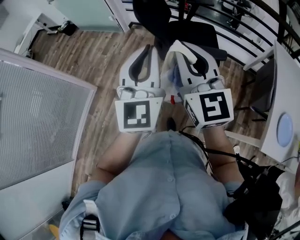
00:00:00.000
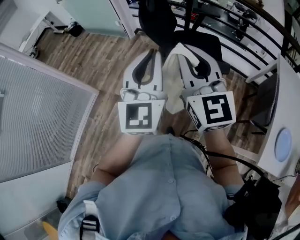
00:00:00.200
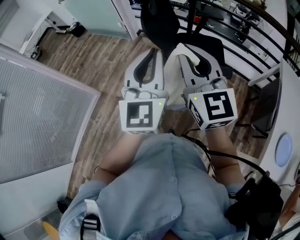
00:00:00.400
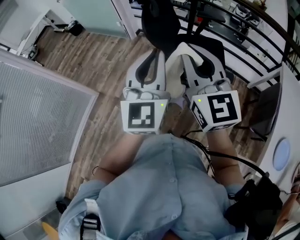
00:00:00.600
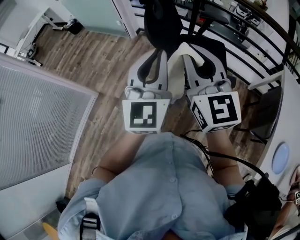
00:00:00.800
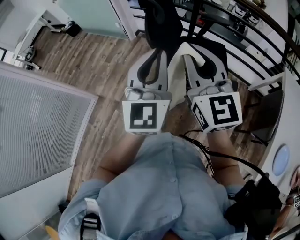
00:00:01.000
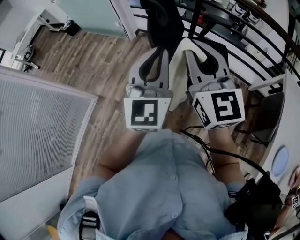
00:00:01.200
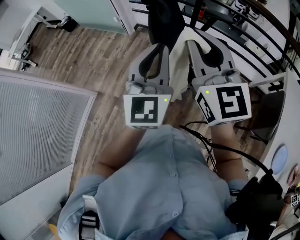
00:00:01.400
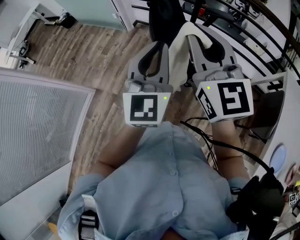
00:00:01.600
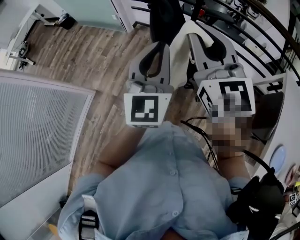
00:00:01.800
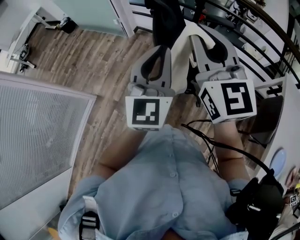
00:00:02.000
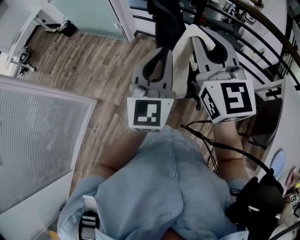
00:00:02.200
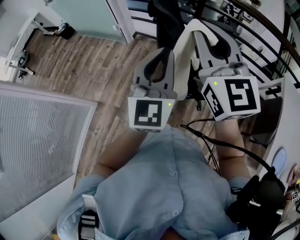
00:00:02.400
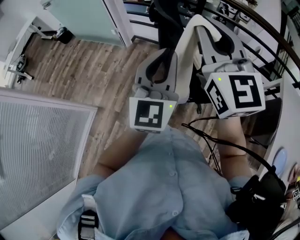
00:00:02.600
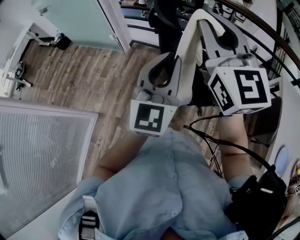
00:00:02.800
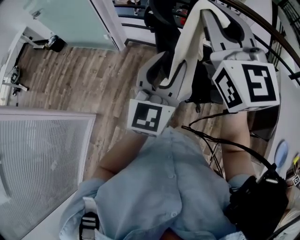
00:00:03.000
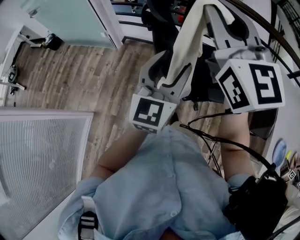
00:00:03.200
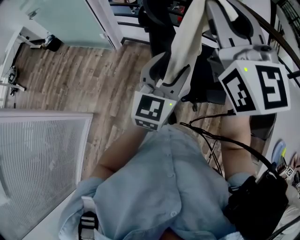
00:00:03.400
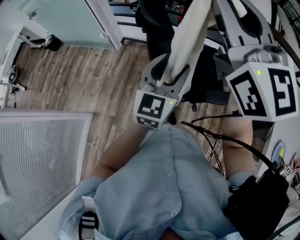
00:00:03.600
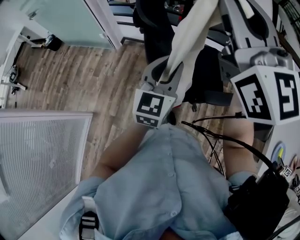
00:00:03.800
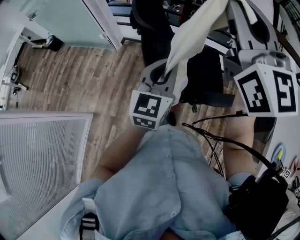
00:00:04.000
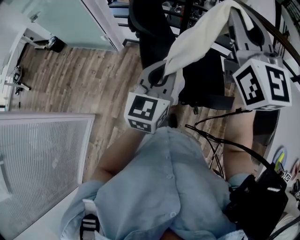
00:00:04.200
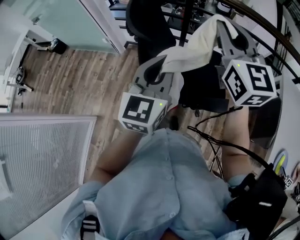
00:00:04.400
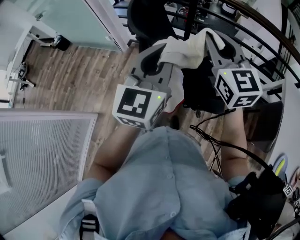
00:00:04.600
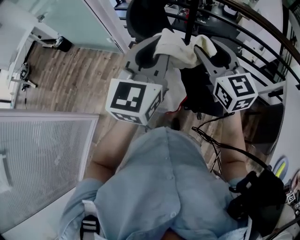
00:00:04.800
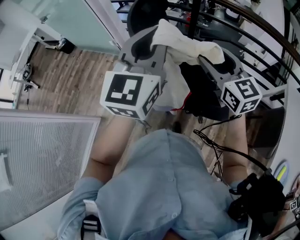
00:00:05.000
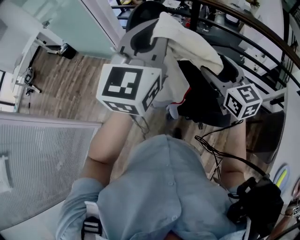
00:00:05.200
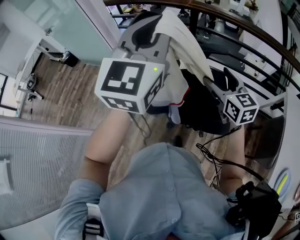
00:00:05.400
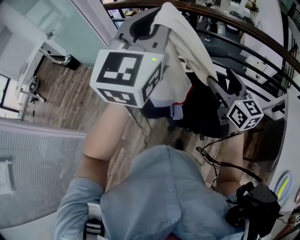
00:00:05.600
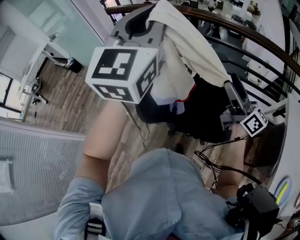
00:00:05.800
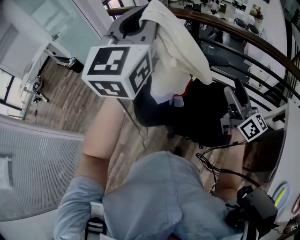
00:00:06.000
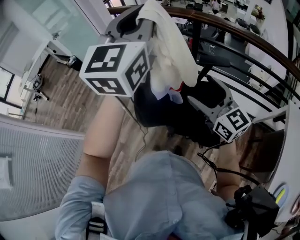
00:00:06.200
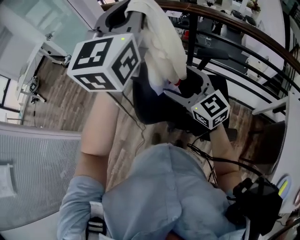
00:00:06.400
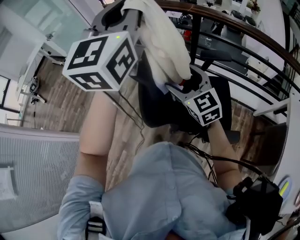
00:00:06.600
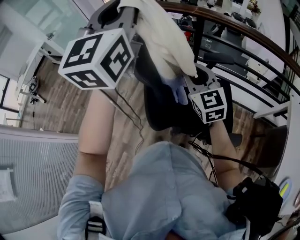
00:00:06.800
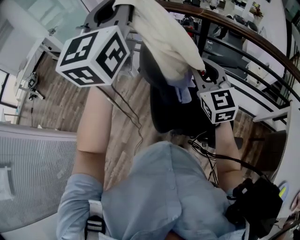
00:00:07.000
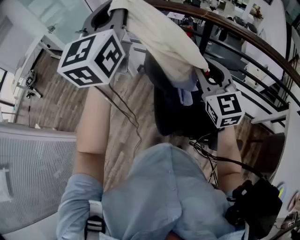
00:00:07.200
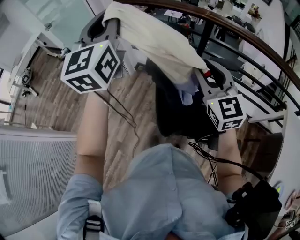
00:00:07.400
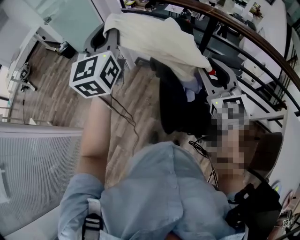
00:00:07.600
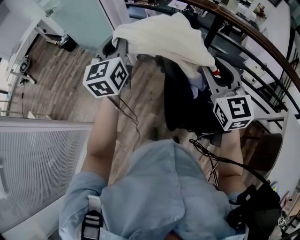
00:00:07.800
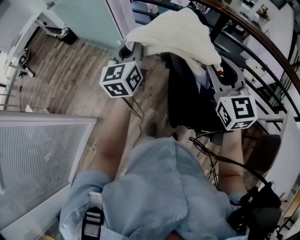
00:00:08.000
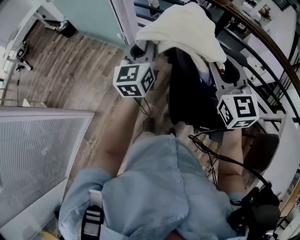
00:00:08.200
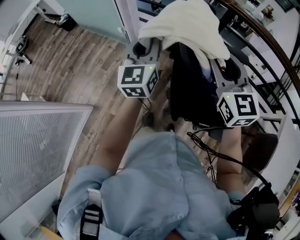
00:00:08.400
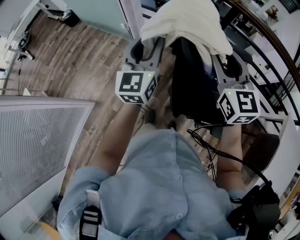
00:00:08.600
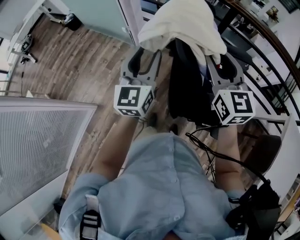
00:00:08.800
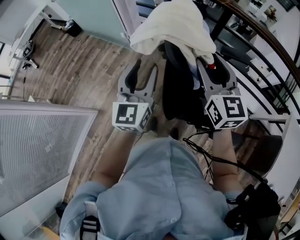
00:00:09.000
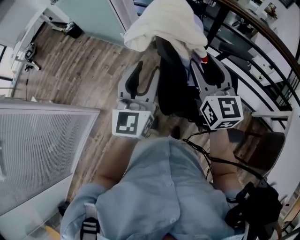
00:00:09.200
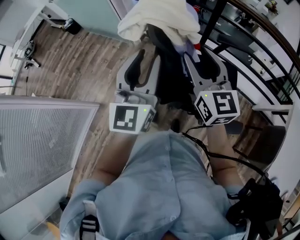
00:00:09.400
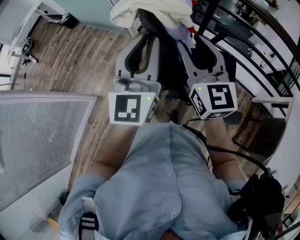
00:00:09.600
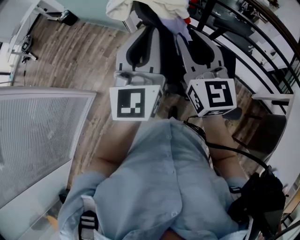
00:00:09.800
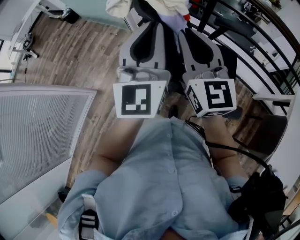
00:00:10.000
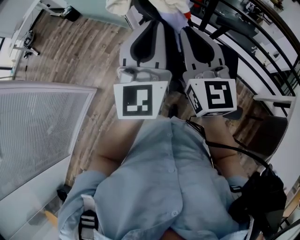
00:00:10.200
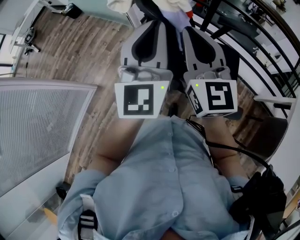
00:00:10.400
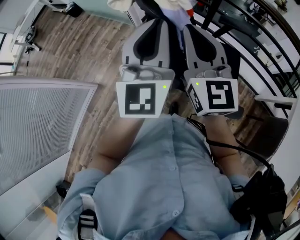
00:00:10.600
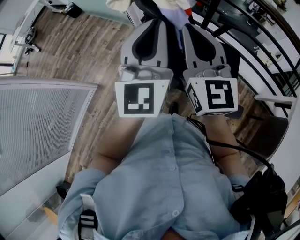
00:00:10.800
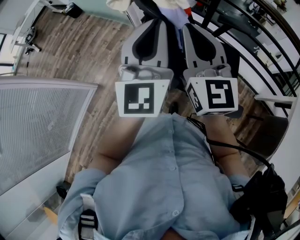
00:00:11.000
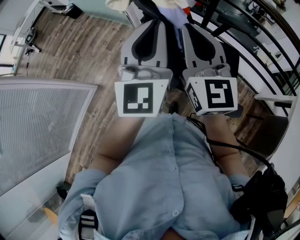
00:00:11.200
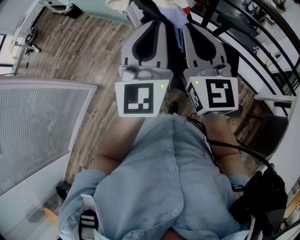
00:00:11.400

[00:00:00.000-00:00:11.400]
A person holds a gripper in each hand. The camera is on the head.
00:00:00.000 to 00:00:01.400: Both grippers travel together forward, approximately 20 cm.
00:00:01.400 to 00:00:02.800: The right gripper moves forward and upward, some 15 cm; the left gripper is displaced forward by about 5 cm.
00:00:02.800 to 00:00:04.200: The right gripper is displaced to the right and forward by about 15 cm. Meanwhile the left gripper is displaced downward, forward and to the right by roughly 10 cm, and opens, then closes again.
00:00:04.200 to 00:00:05.600: The right gripper heads downward, covering approximately 20 cm, swivels about 30 degrees, and opens its fingers. Meanwhile the left gripper is displaced upward and forward by about 25 cm, and swivels approximately 20 degrees.
00:00:05.600 to 00:00:07.200: Both grippers travel together to the left and forward, roughly 20 cm. The right gripper changes its angle by about 30 degrees, and closes.
00:00:07.200 to 00:00:08.600: The left gripper shifts approximately 25 cm downward, and opens; the right gripper changes place by about 5 cm.
00:00:08.600 to 00:00:10.000: The left gripper travels backward and to the right by about 20 cm, and closes up, while the right gripper is displaced backward by some 10 cm.
00:00:10.000 to 00:00:11.400: The grippers stay close to where they were, moving slightly.

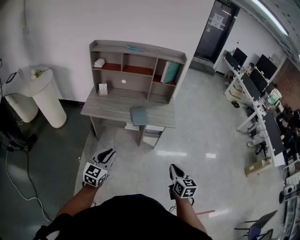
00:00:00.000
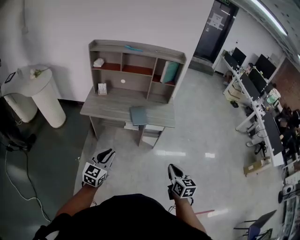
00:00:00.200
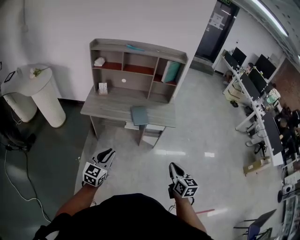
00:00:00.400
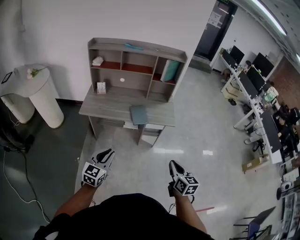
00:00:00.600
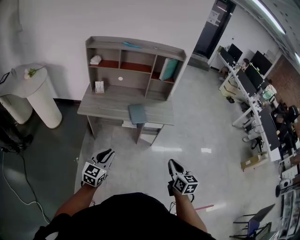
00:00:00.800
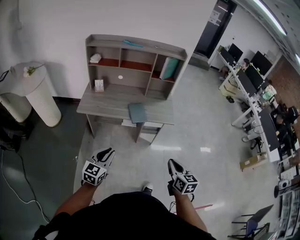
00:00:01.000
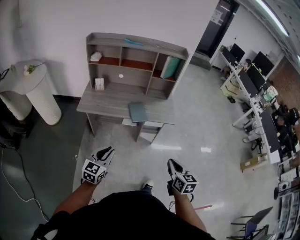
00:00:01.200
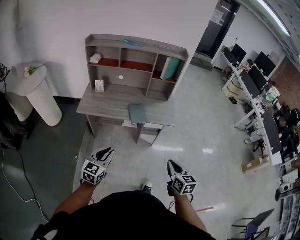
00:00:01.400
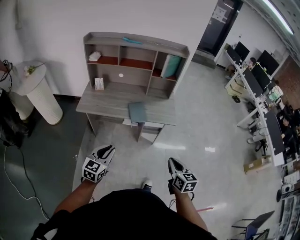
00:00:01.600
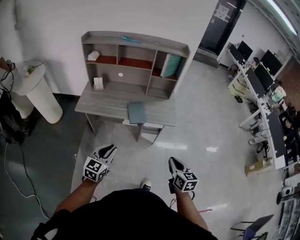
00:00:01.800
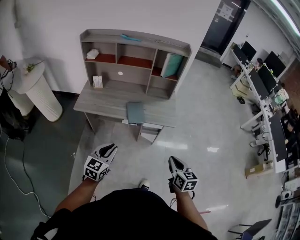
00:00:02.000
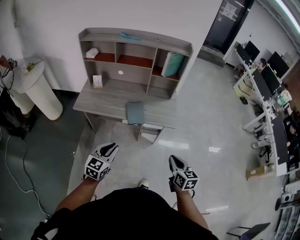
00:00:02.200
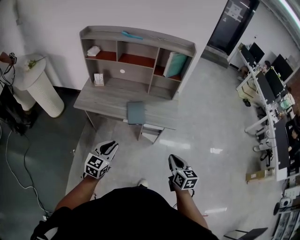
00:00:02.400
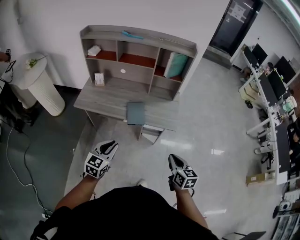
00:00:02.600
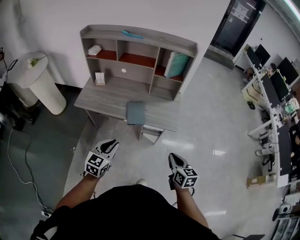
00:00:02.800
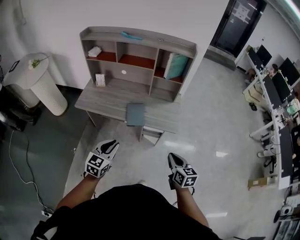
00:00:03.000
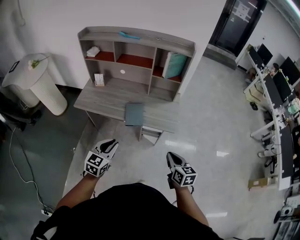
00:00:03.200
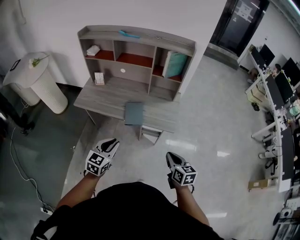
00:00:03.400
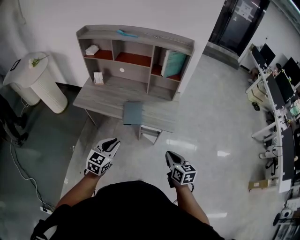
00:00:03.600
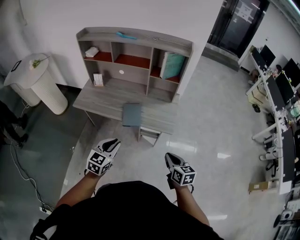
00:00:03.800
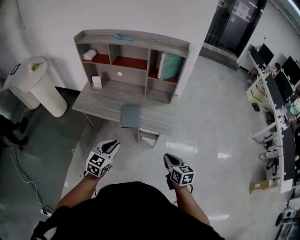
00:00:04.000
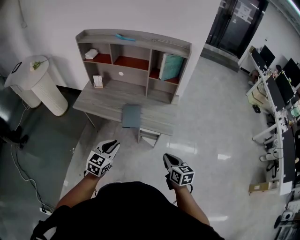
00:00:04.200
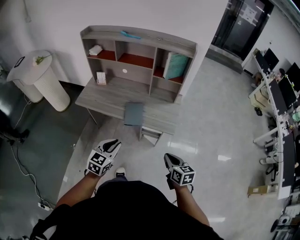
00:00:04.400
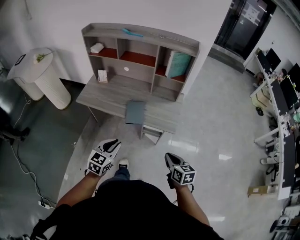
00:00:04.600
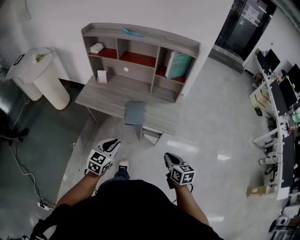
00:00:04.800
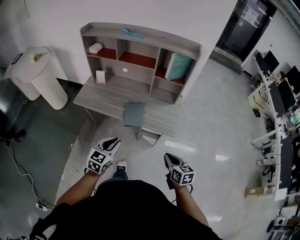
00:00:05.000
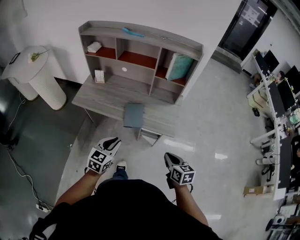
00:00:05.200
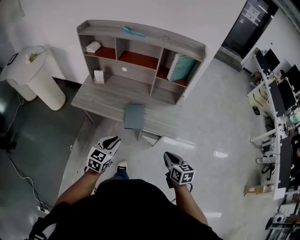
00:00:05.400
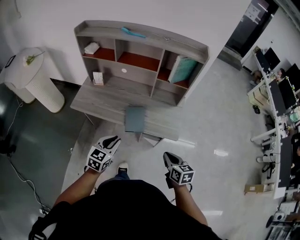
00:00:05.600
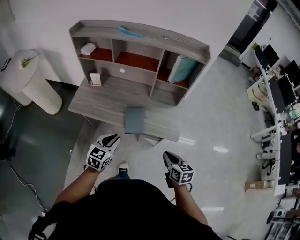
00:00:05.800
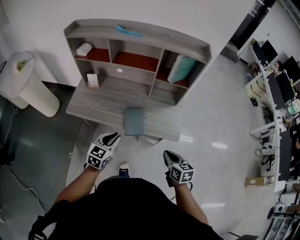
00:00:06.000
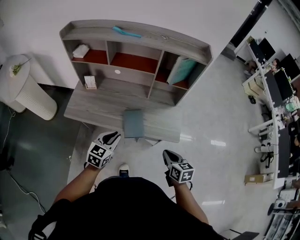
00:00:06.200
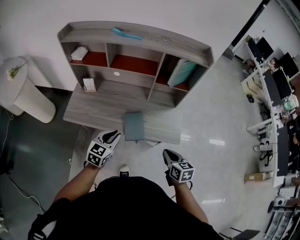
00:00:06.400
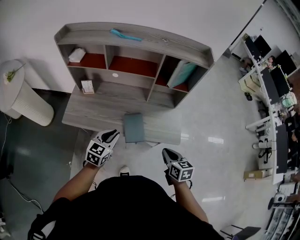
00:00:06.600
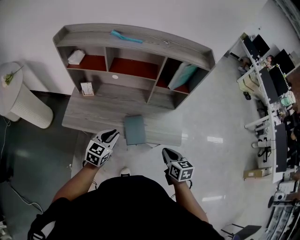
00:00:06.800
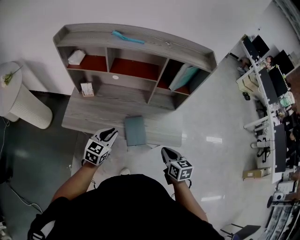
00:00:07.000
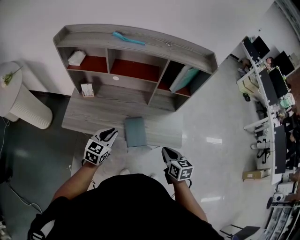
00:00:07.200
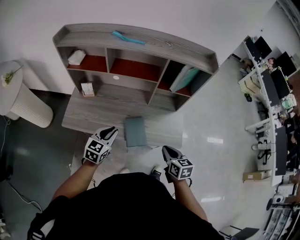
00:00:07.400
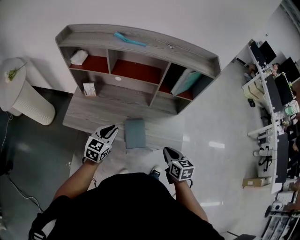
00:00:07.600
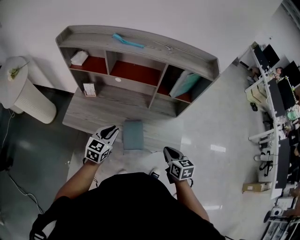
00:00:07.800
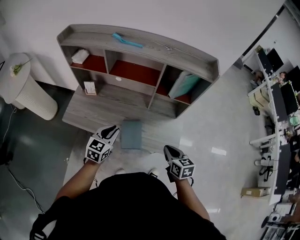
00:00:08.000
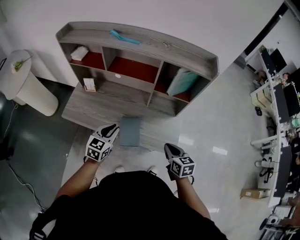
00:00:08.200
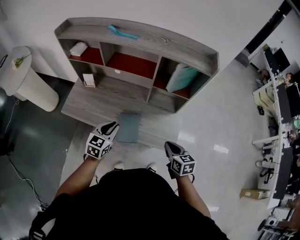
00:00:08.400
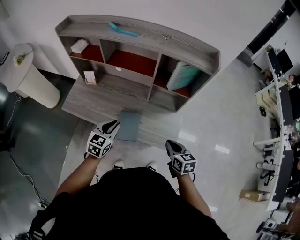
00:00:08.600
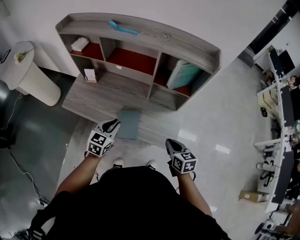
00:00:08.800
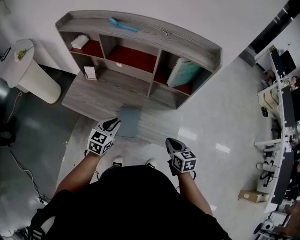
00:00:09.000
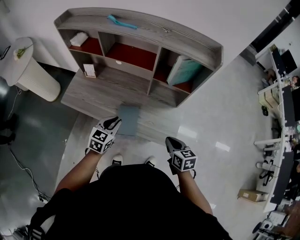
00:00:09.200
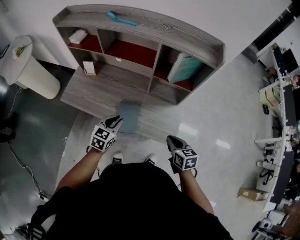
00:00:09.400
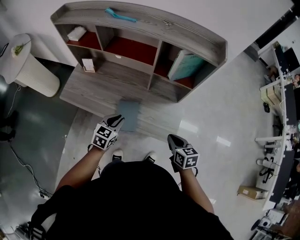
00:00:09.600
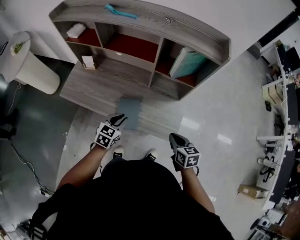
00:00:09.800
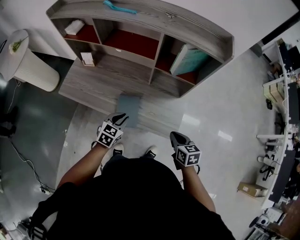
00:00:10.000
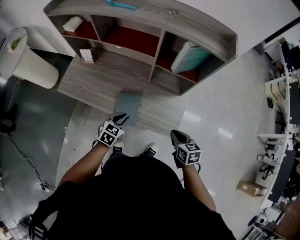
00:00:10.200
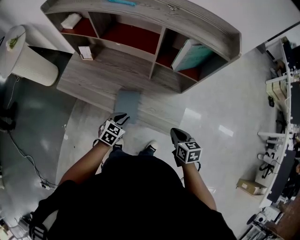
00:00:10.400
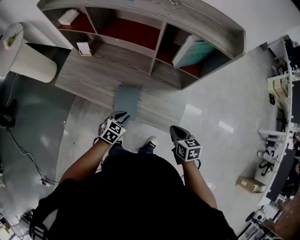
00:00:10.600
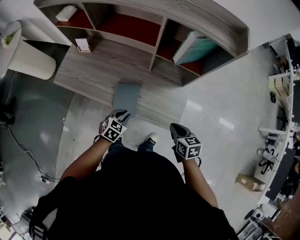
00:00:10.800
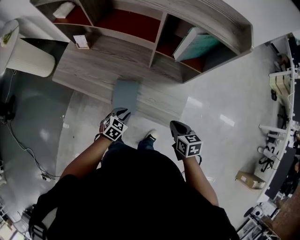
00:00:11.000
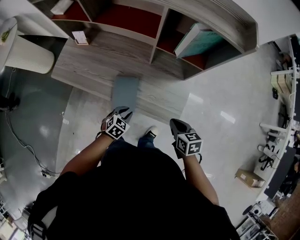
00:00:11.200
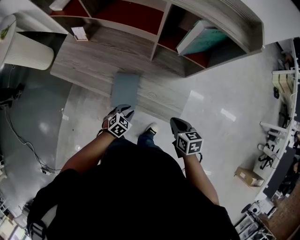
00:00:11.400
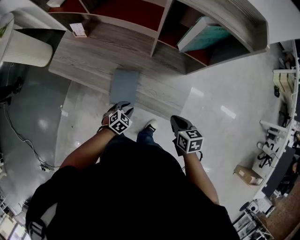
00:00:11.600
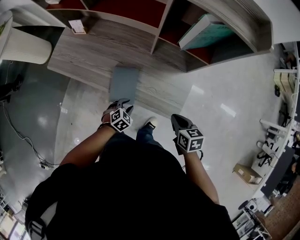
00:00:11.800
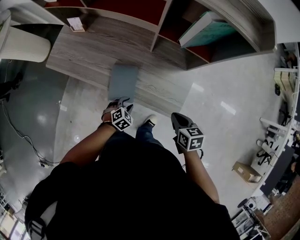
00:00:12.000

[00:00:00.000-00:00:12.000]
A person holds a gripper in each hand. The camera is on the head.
00:00:00.000 to 00:00:01.600: Both grippers move forward, some 5 cm.
00:00:01.600 to 00:00:03.000: Both grippers travel together forward and to the right, approximately 15 cm.
00:00:03.000 to 00:00:04.400: The left gripper travels to the right by approximately 5 cm.
00:00:04.400 to 00:00:06.000: The right gripper shifts roughly 15 cm forward and to the left; the left gripper moves forward, roughly 15 cm.
00:00:06.000 to 00:00:07.600: The right gripper shifts about 10 cm forward. Meanwhile the left gripper heads forward and to the left, covering roughly 15 cm.
00:00:07.600 to 00:00:09.000: The two grippers go approximately 10 cm to the right.
00:00:09.000 to 00:00:10.400: The left gripper heads downward, covering roughly 15 cm; the right gripper shifts about 5 cm downward.
00:00:10.400 to 00:00:12.000: The right gripper goes approximately 5 cm downward. Meanwhile the left gripper shifts some 15 cm downward, turns by about 30 degrees, and opens its fingers.
